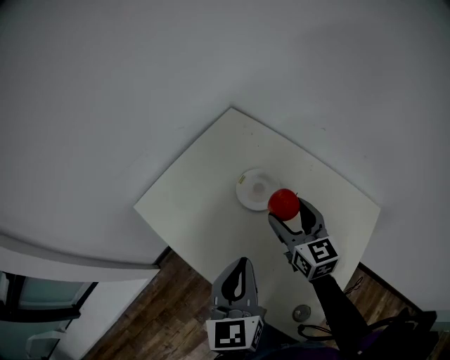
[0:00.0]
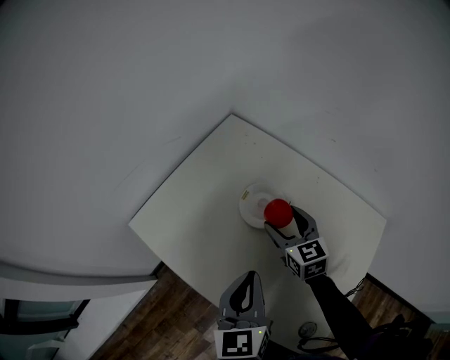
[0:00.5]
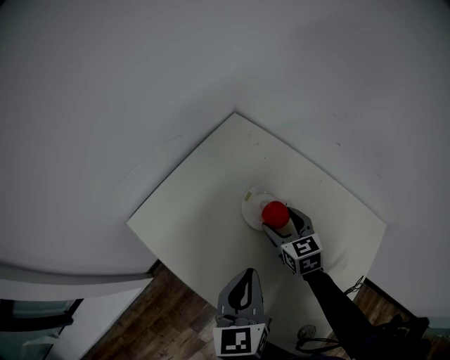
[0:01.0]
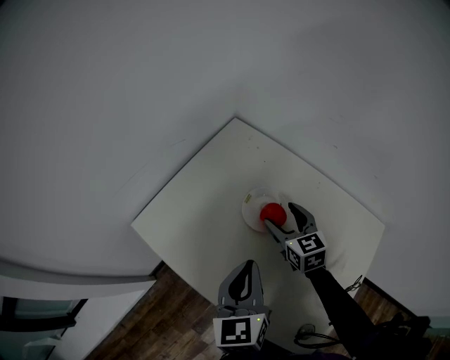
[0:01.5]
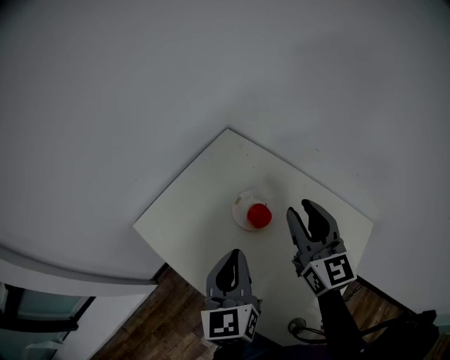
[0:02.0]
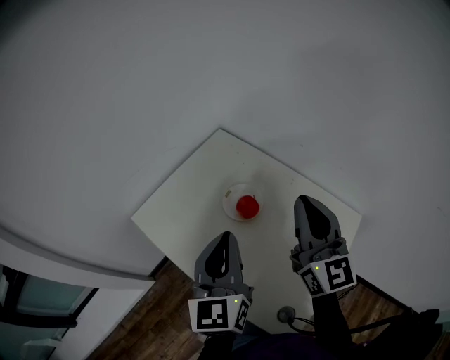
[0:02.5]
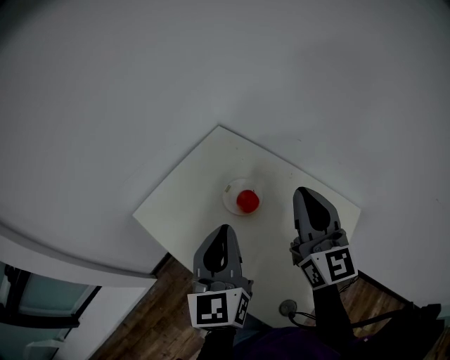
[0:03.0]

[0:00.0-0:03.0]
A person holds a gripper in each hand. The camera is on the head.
0:00.0 to 0:01.5: The right gripper heads forward and downward, covering roughly 10 cm; the left gripper heads forward, covering some 5 cm.
0:01.5 to 0:03.0: The right gripper travels upward and backward by some 30 cm, tilts its fingers approximately 40 degrees upward, and closes its fingers. The left gripper goes approximately 15 cm upward.

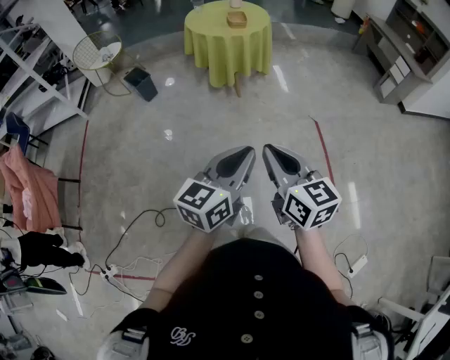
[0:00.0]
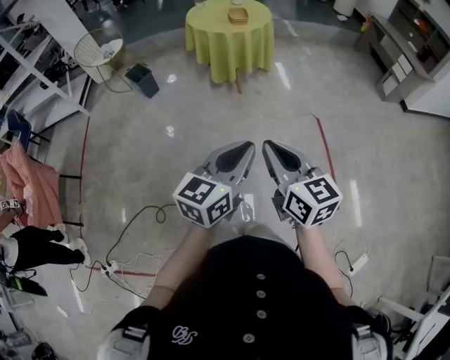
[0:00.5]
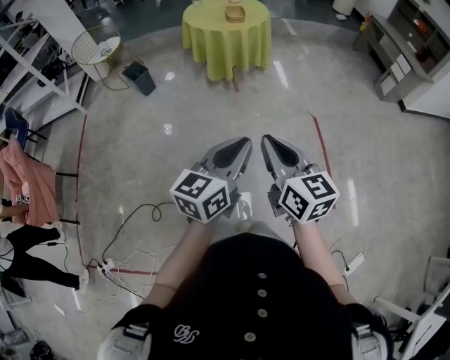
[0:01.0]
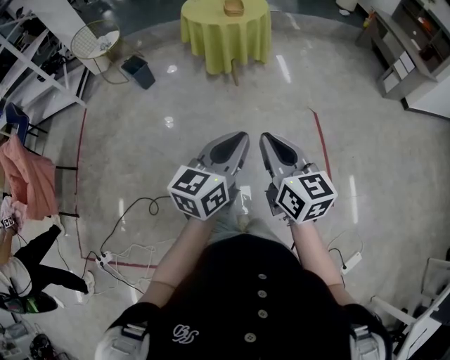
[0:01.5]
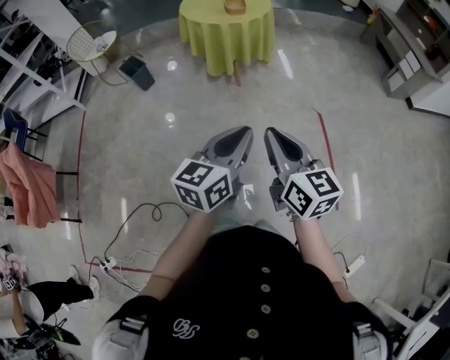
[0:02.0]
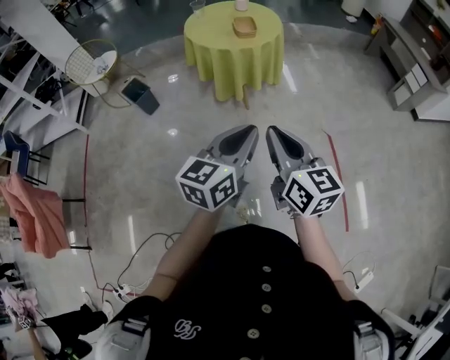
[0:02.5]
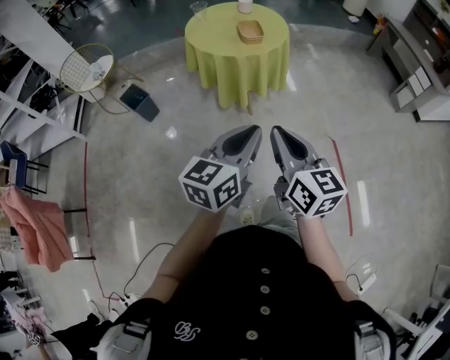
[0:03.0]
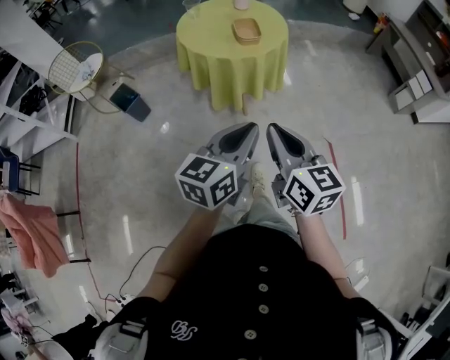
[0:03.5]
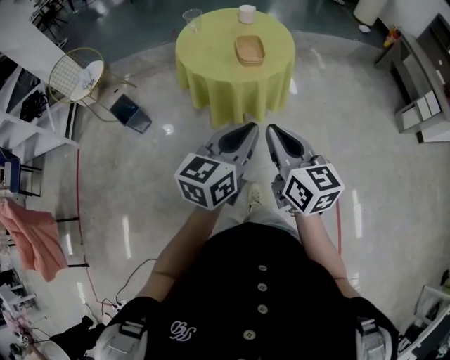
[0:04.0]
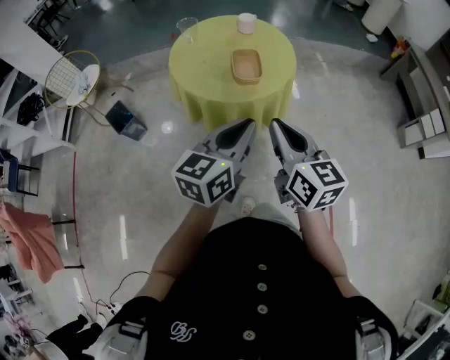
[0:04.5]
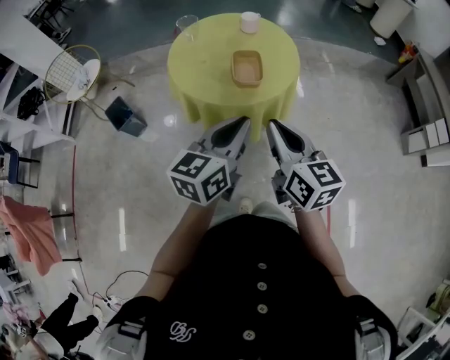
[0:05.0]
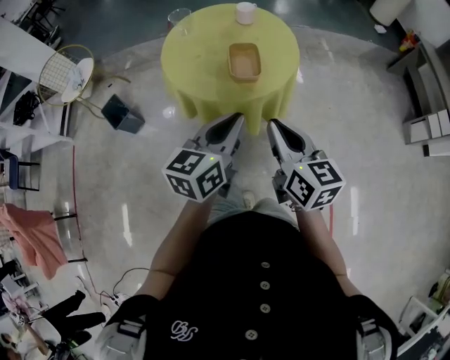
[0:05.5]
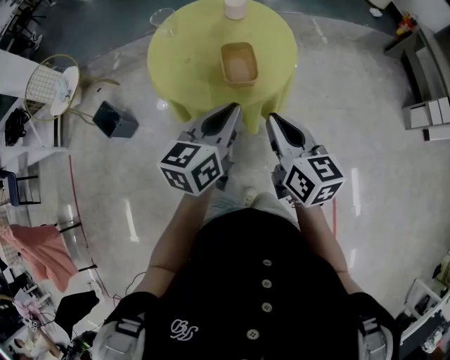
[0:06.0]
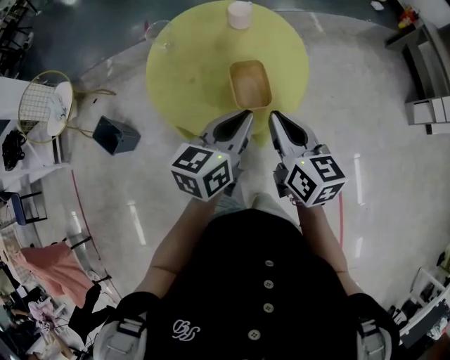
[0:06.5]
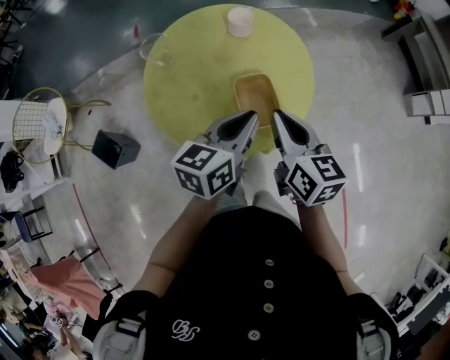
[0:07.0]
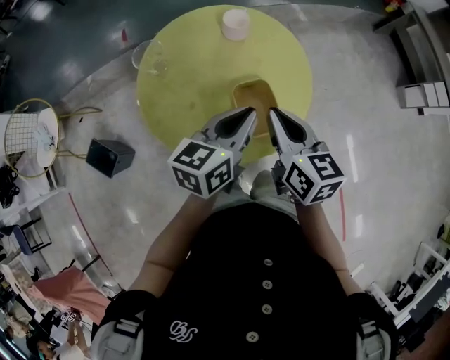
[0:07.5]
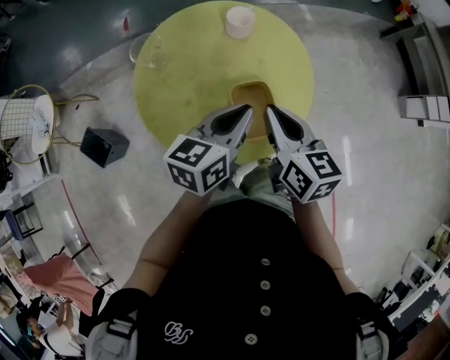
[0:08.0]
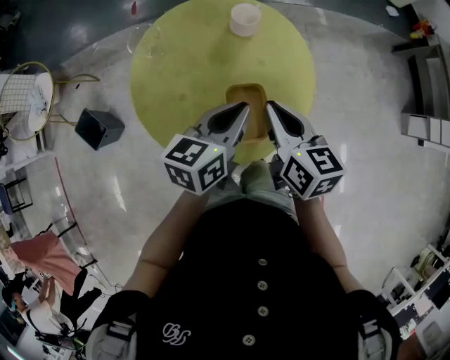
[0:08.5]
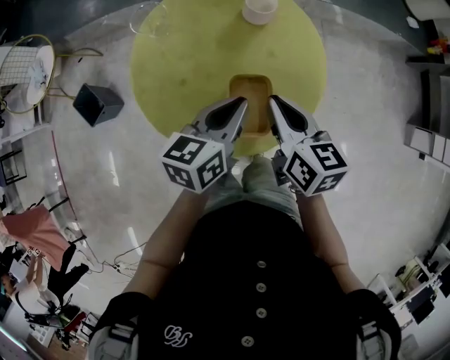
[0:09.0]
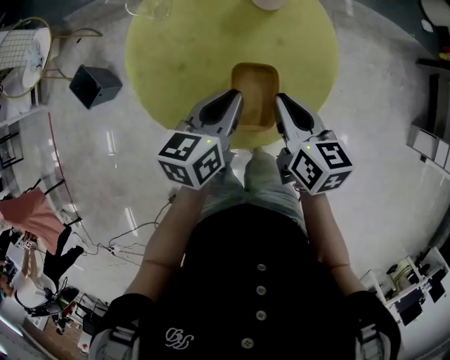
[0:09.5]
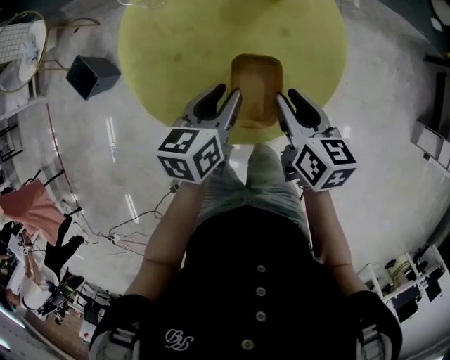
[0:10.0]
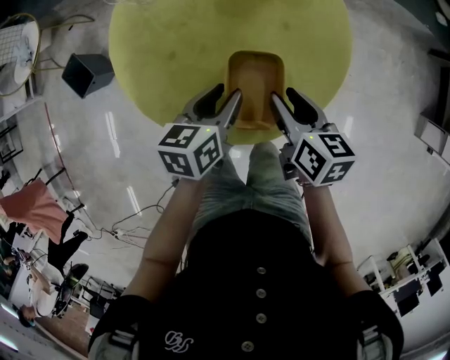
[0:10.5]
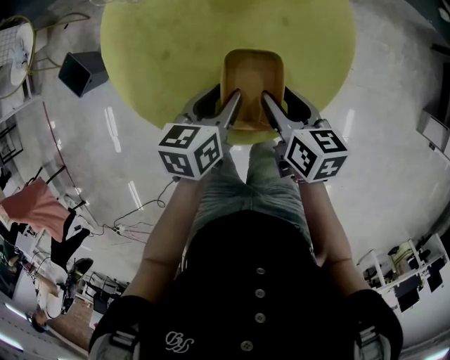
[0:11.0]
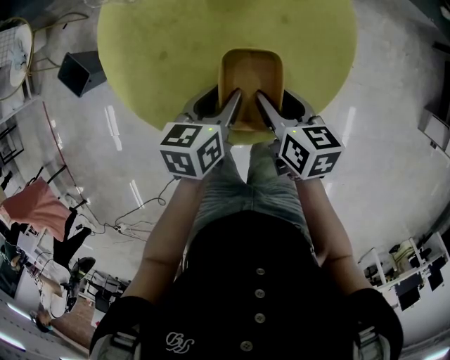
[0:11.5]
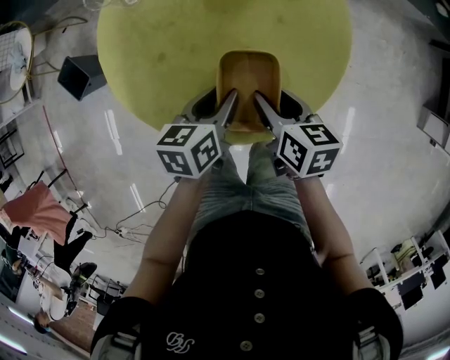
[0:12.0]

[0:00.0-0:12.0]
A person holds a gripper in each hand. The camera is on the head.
0:00.0 to 0:02.0: Both grippers move forward, about 10 cm.
0:02.0 to 0:04.0: Both grippers are carried forward, roughly 50 cm.
0:04.0 to 0:06.0: Both grippers move forward, about 25 cm.
0:06.0 to 0:08.0: The left gripper moves forward, some 20 cm, while the right gripper goes some 25 cm forward and to the left.
0:08.0 to 0:10.0: The two grippers go approximately 10 cm downward. The right gripper swivels some 20 degrees, and opens; the left gripper rotates approximately 30 degrees, and opens its fingers.
0:10.0 to 0:12.0: The two grippers go roughly 5 cm downward.

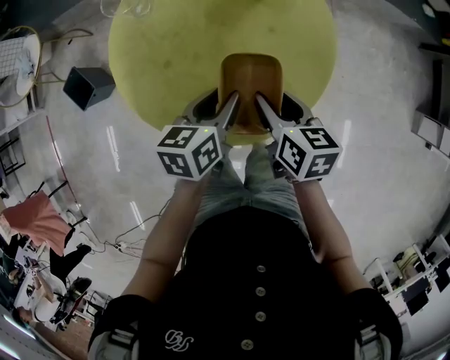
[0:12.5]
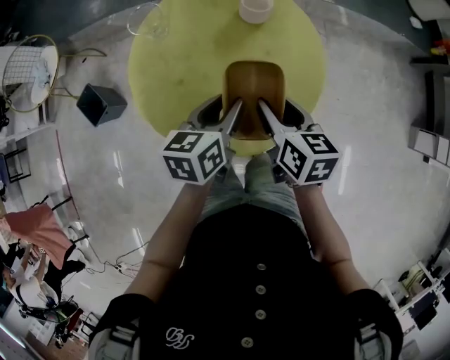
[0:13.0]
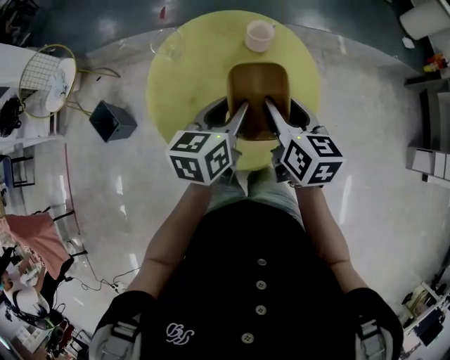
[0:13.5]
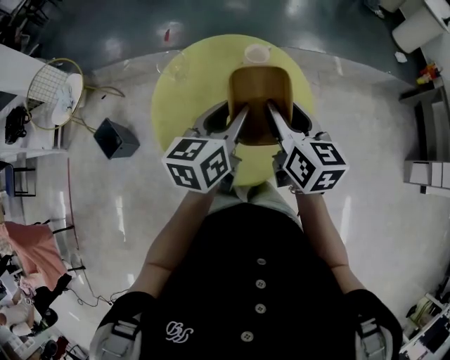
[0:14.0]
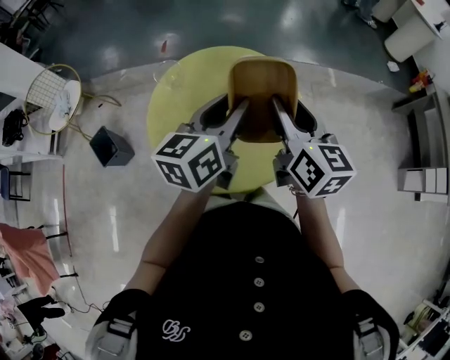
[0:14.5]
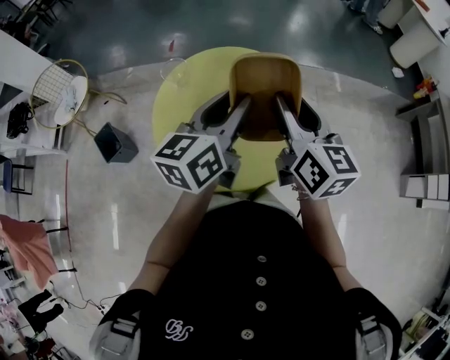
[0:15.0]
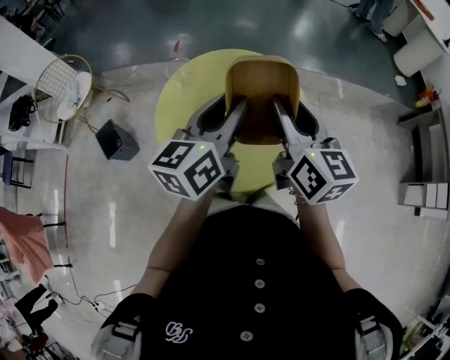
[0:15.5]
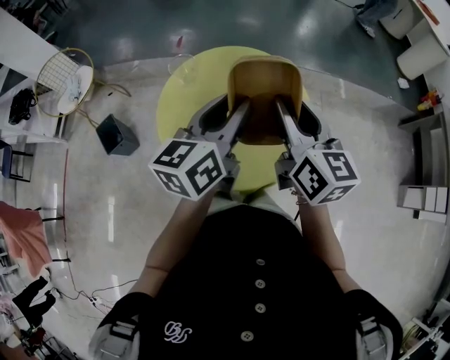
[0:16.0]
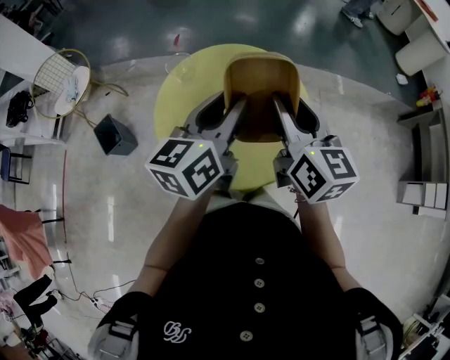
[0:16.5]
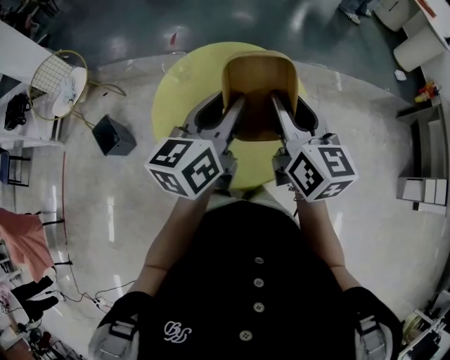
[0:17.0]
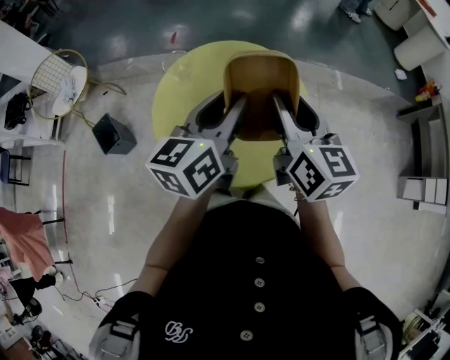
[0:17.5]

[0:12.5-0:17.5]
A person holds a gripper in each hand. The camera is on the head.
0:12.5 to 0:15.0: Both grippers travel together upward, approximately 25 cm. The right gripper points its fingers some 30 degrees further upward; the left gripper points its fingers about 30 degrees further upward.
0:15.0 to 0:17.5: The grippers make only small movements.

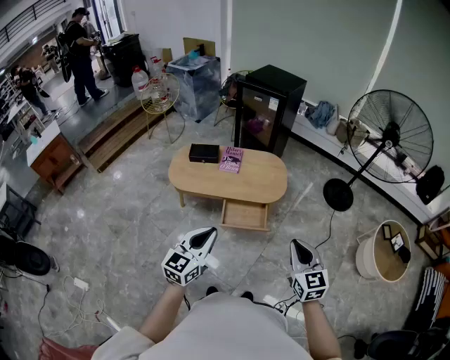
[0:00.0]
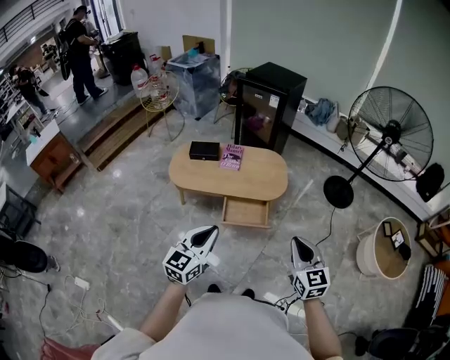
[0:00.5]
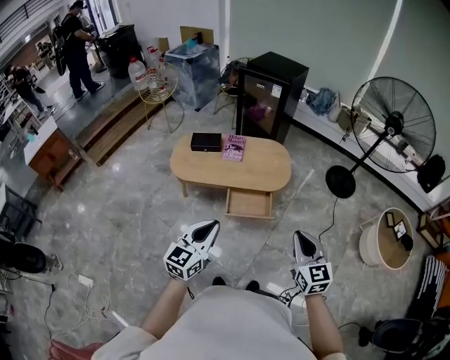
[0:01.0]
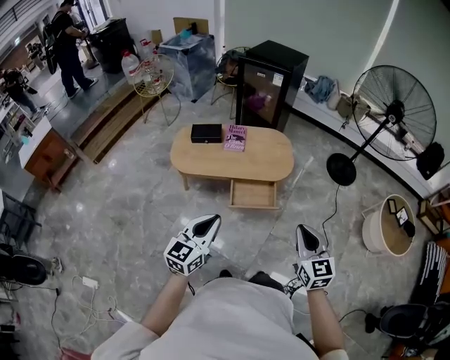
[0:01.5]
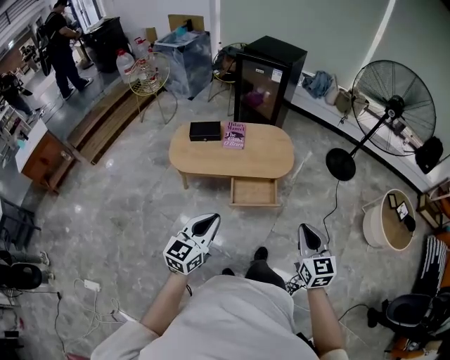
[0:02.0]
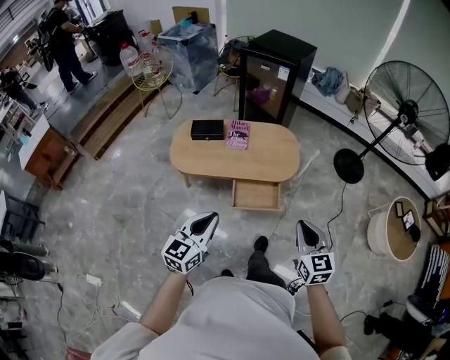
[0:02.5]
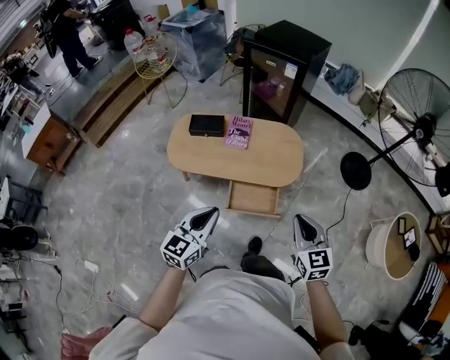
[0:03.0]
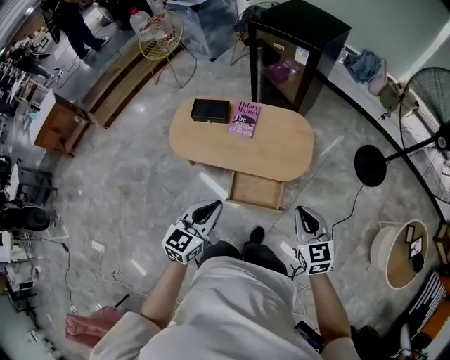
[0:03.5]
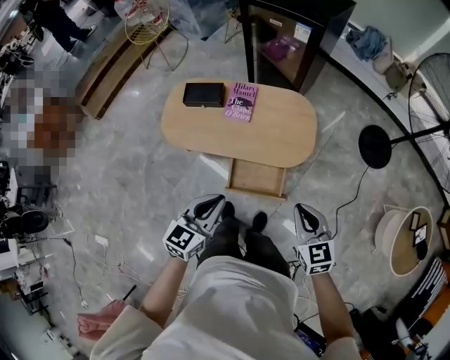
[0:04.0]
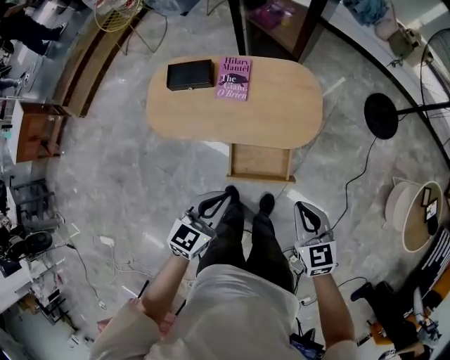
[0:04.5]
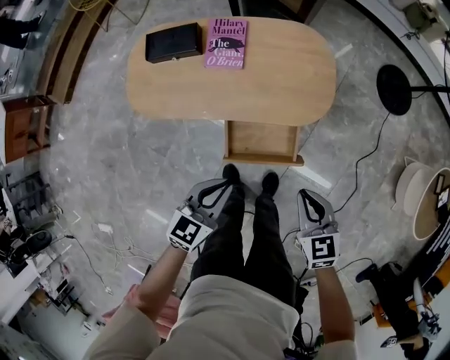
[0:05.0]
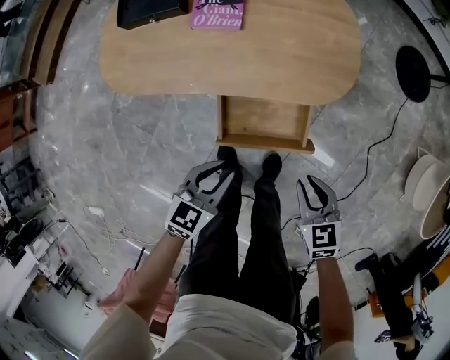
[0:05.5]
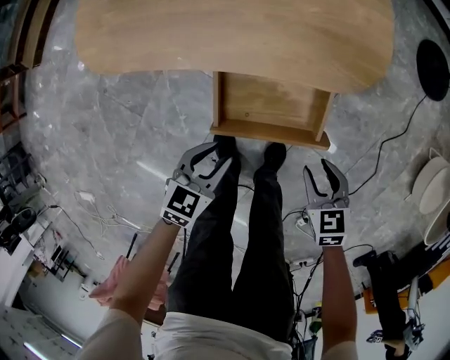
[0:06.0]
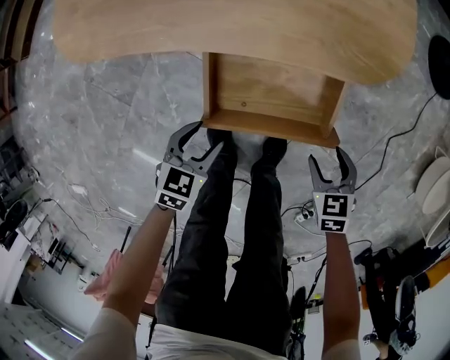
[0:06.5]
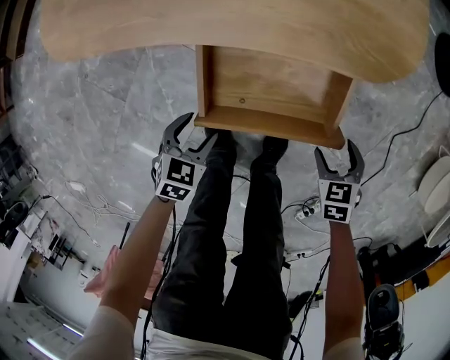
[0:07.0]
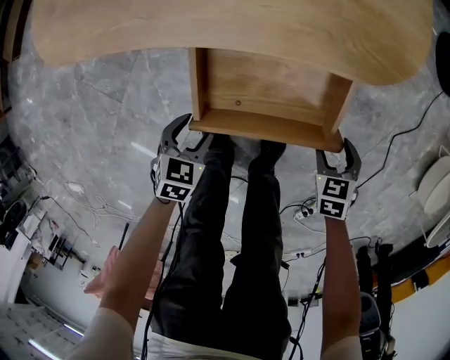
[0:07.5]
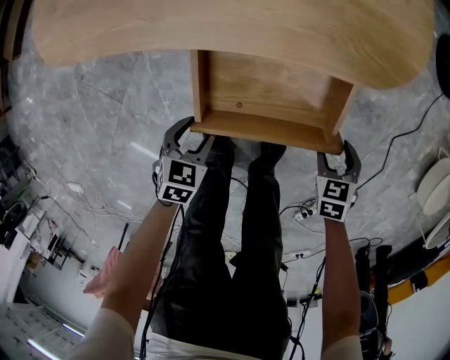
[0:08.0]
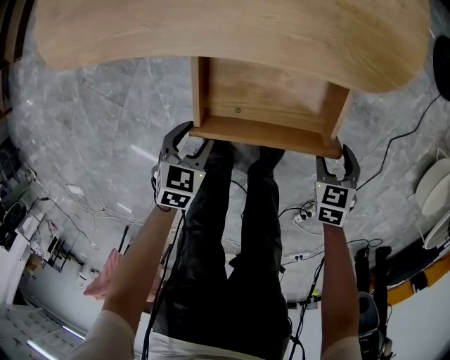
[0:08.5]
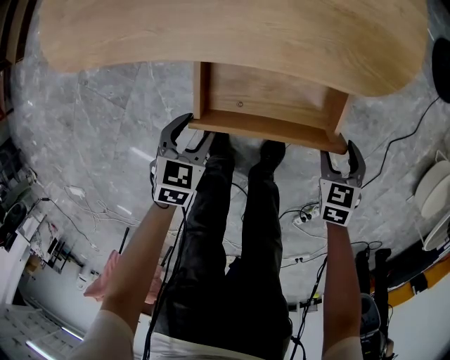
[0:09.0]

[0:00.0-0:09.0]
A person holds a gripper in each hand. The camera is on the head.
0:00.0 to 0:02.0: Both grippers move to the left, some 10 cm.
0:02.0 to 0:04.5: The grippers both shift forward and downward by about 35 cm. The right gripper rotates approximately 20 degrees.
0:04.5 to 0:07.0: The grippers both shift downward by approximately 60 cm. The left gripper angles its fingers downward, by approximately 40 degrees, and opens its fingers, while the right gripper tips its fingers downward by some 30 degrees, and opens its fingers.
0:07.0 to 0:09.0: The left gripper moves about 5 cm.
